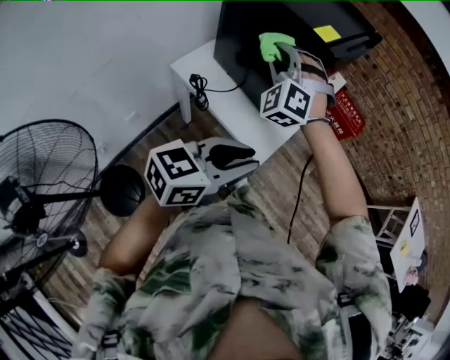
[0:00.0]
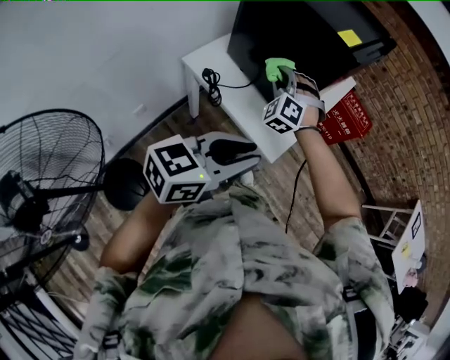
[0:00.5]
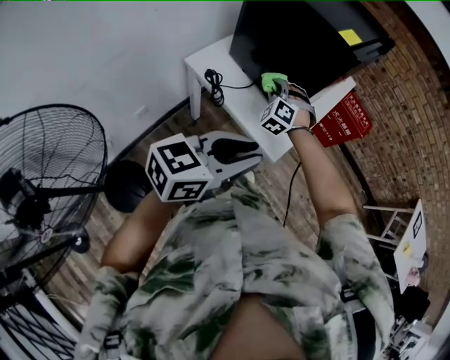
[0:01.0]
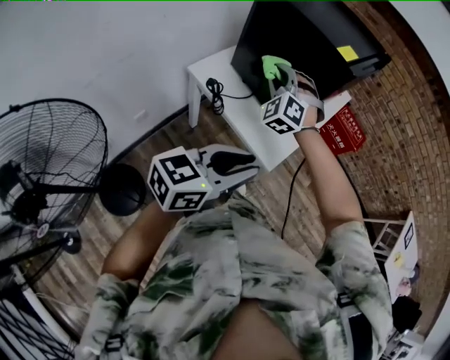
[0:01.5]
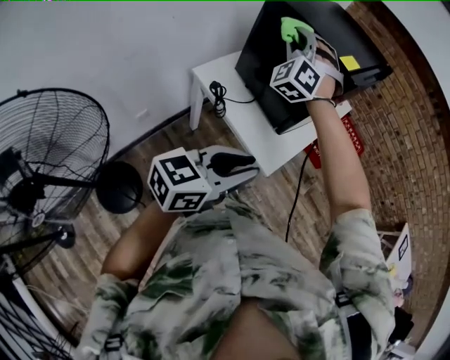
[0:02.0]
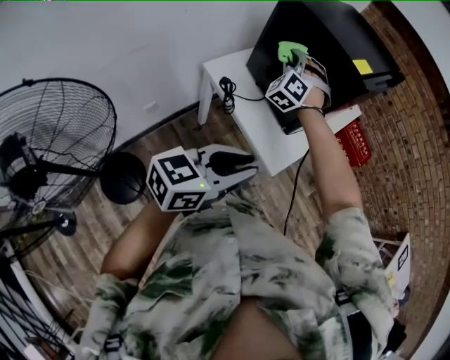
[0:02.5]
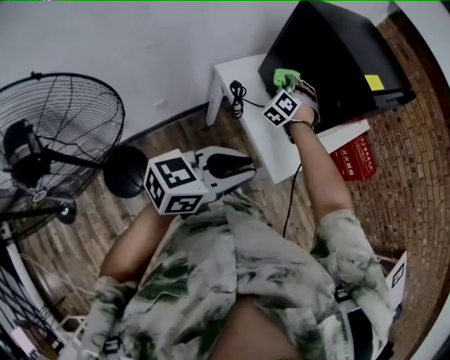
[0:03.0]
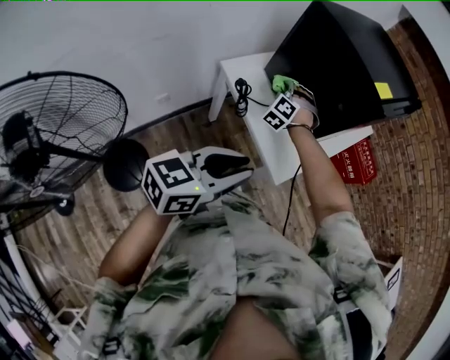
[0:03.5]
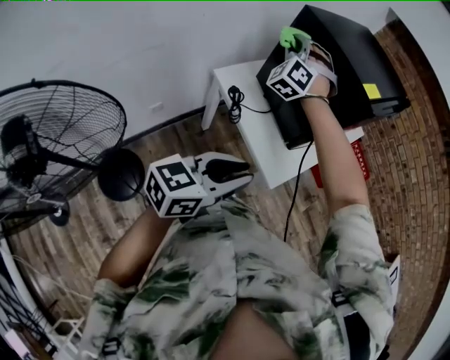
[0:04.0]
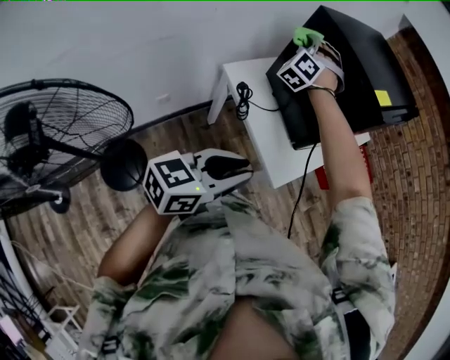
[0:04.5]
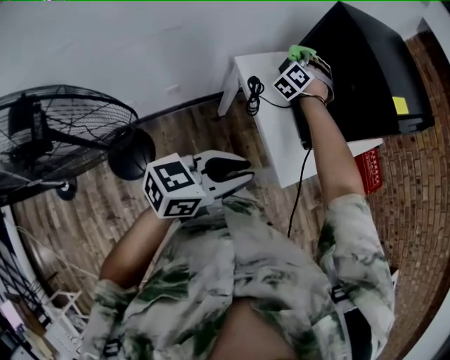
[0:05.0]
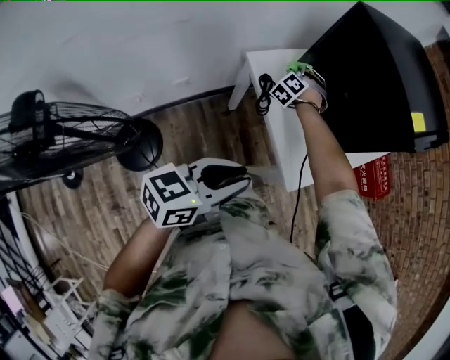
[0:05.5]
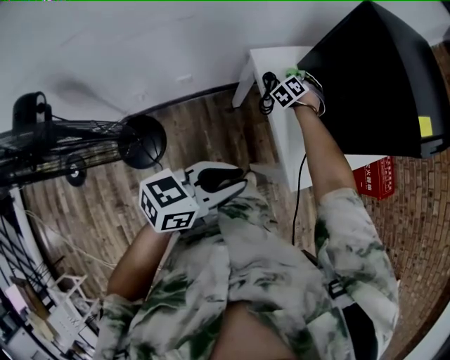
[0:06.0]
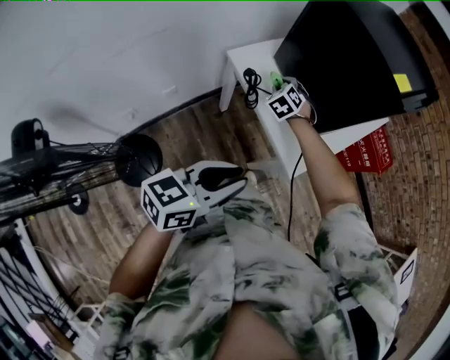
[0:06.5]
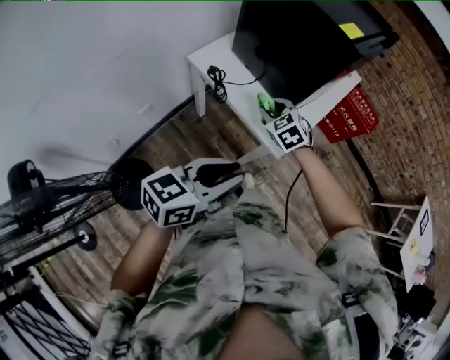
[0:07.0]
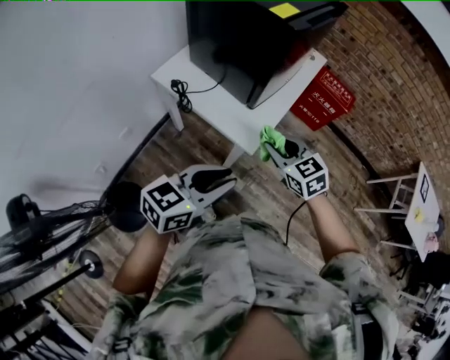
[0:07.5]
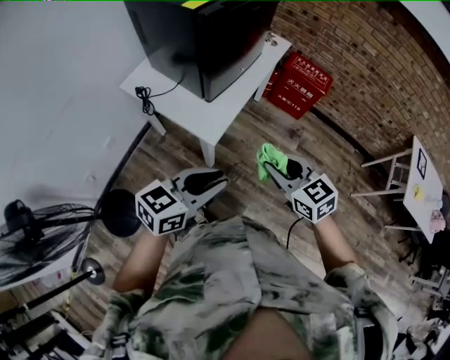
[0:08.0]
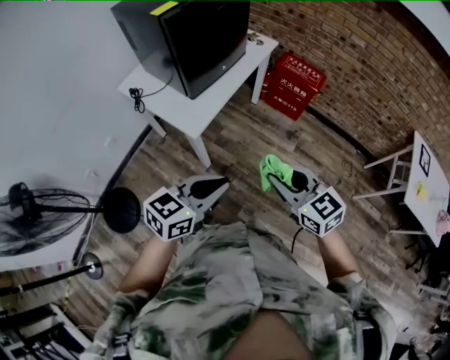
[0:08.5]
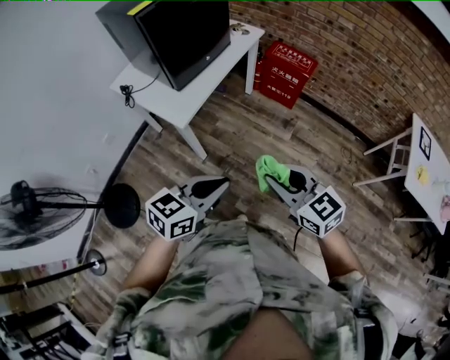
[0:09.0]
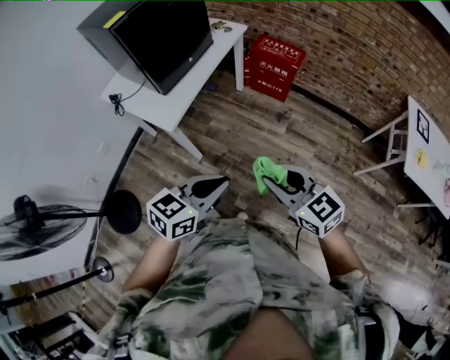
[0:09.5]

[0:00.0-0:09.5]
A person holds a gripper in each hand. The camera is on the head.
0:00.0 to 0:02.0: The left gripper shifts by about 5 cm, while the right gripper heads to the left, covering approximately 10 cm, and reaches some 20 cm downward, then returns.
0:02.0 to 0:04.0: The right gripper moves to the left, about 10 cm, and goes downward and returns, approximately 25 cm each way.
0:04.0 to 0:05.5: The left gripper changes place by approximately 5 cm; the right gripper travels downward by some 30 cm, and turns by about 30 degrees.
0:05.5 to 0:07.5: The right gripper goes some 40 cm to the right and backward, and rolls clockwise, seen from behind, by some 60 degrees. The left gripper is displaced to the right by approximately 15 cm, and changes its angle by some 30 degrees.
0:07.5 to 0:09.5: Both grippers are carried to the right, about 40 cm.

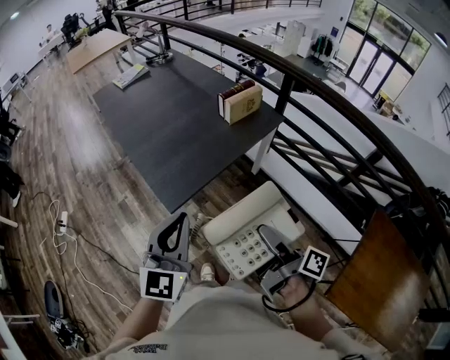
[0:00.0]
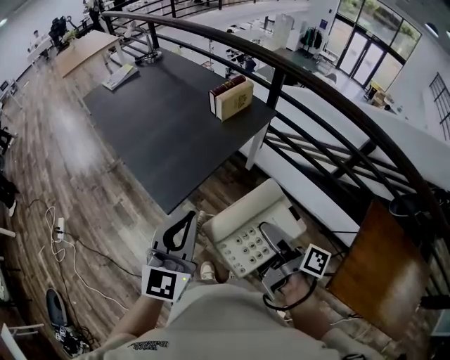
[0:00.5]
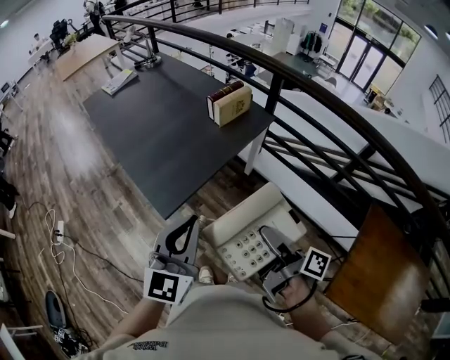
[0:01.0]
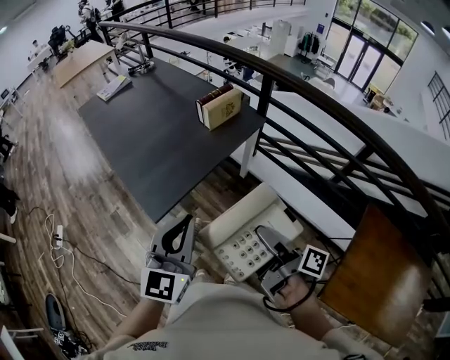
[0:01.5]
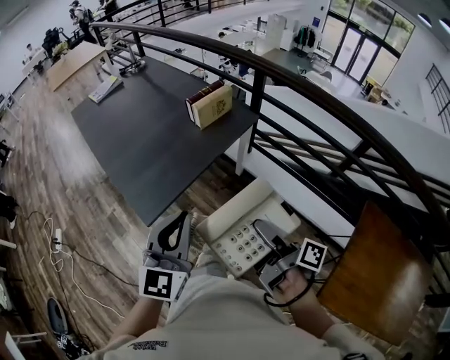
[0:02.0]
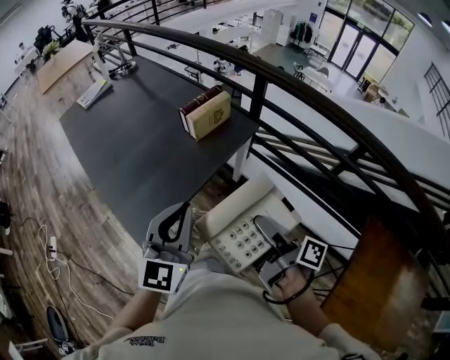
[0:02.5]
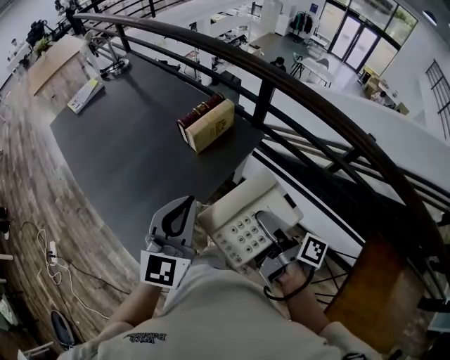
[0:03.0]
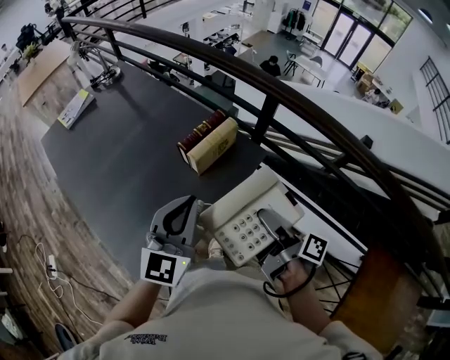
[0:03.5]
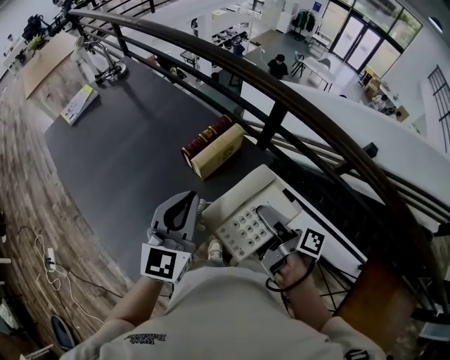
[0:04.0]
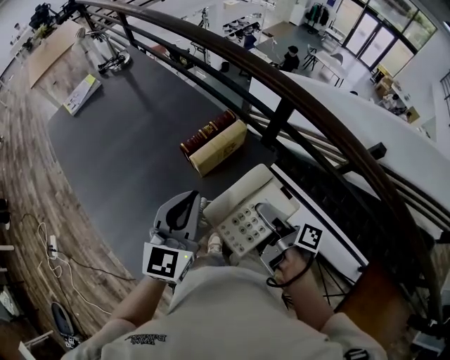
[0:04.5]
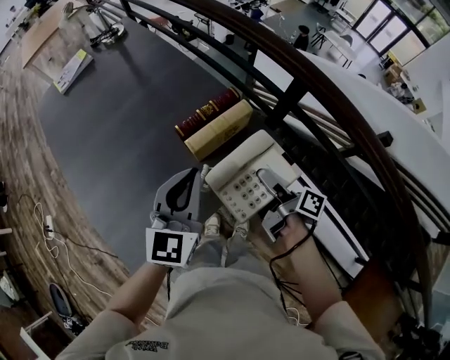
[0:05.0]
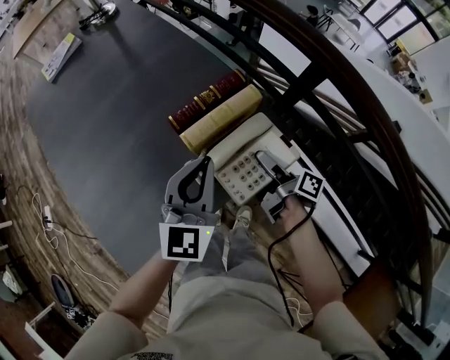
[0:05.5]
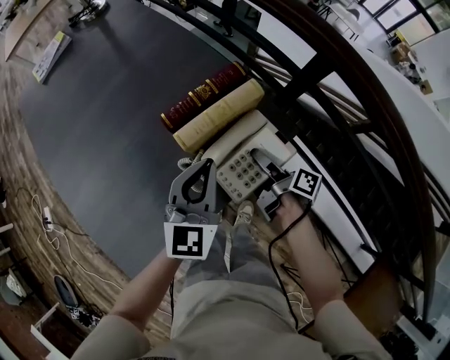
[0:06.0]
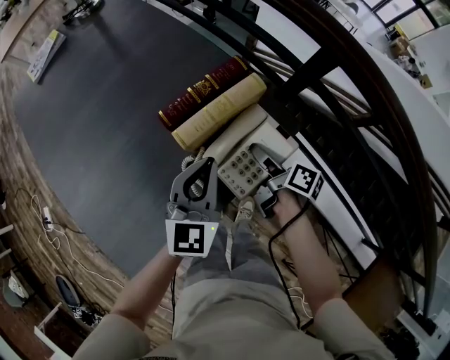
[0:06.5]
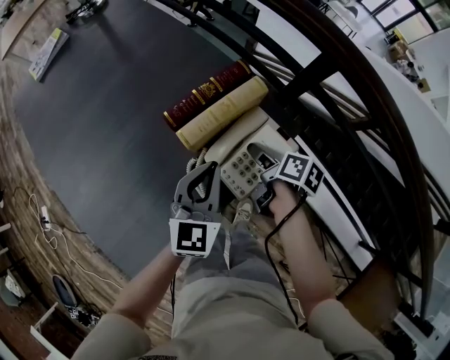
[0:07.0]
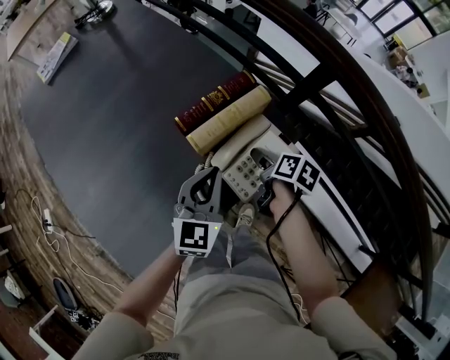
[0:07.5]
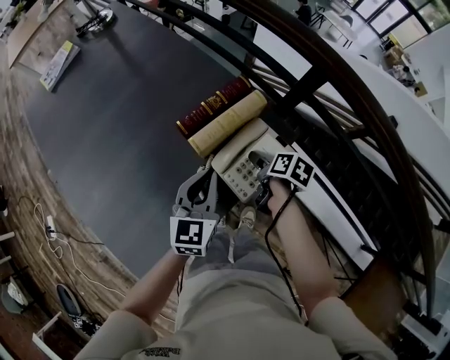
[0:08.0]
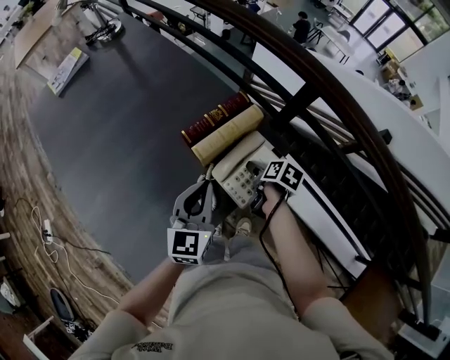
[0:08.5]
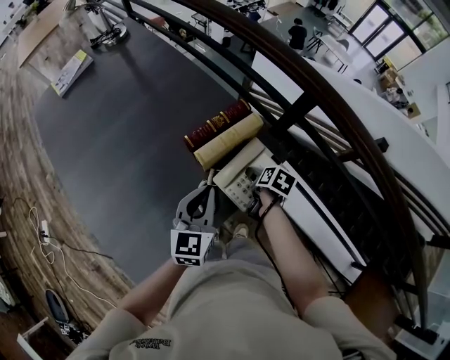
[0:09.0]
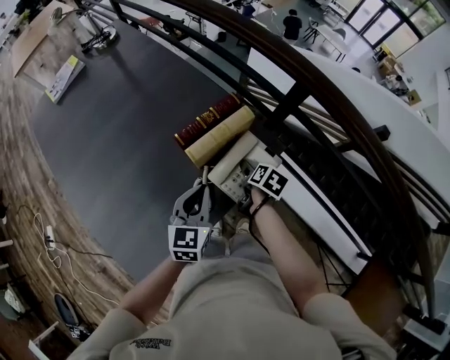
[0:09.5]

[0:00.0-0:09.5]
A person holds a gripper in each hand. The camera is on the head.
0:00.0 to 0:02.0: Both grippers move to the right, some 10 cm.
0:02.0 to 0:04.0: Both grippers travel together forward, approximately 40 cm.
0:04.0 to 0:05.5: The left gripper heads downward, forward and to the right, covering roughly 15 cm; the right gripper goes about 25 cm downward and forward.
0:05.5 to 0:07.5: The left gripper moves downward, some 10 cm. Meanwhile the right gripper shifts by roughly 5 cm, angles its fingers downward, by approximately 40 degrees, and opens up.
0:07.5 to 0:09.5: There are only small adjustments of the grippers.

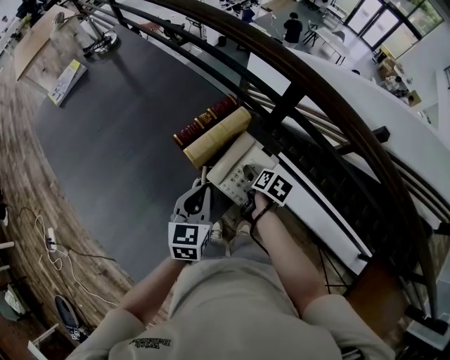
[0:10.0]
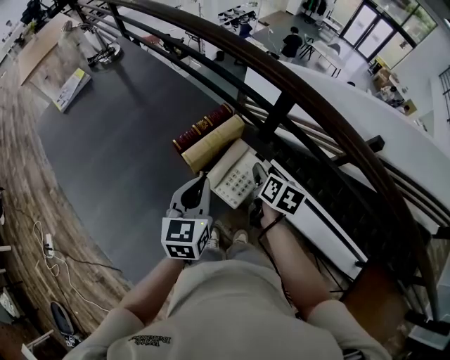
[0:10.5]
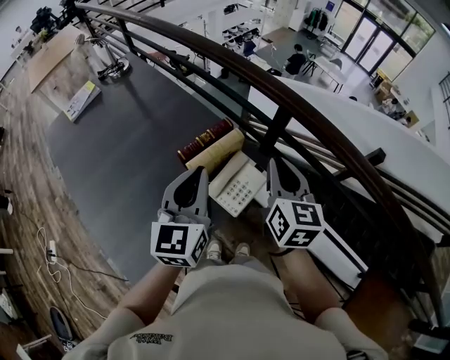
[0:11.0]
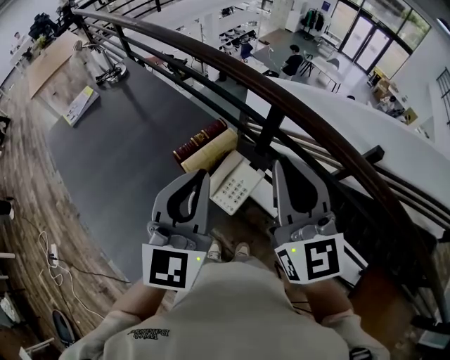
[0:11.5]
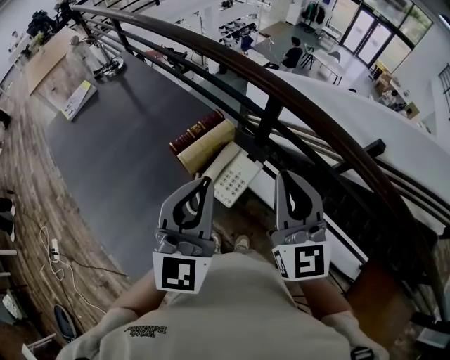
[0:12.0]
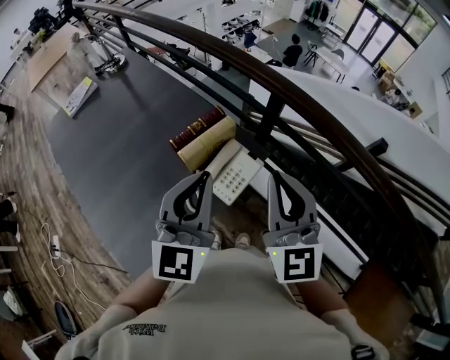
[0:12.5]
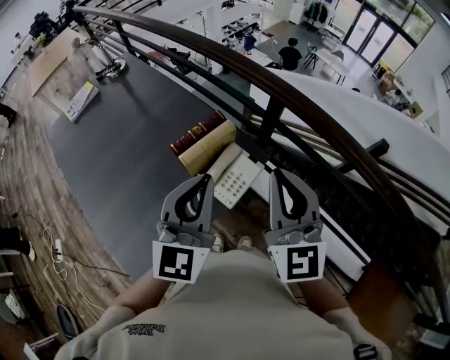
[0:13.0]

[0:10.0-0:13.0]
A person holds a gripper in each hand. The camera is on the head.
0:10.0 to 0:11.5: The left gripper is displaced upward by approximately 30 cm, and swivels approximately 30 degrees. The right gripper shifts about 50 cm upward, tilts its fingers some 60 degrees upward, and closes up.
0:11.5 to 0:13.0: The left gripper moves some 5 cm. Meanwhile the right gripper shifts about 5 cm downward.

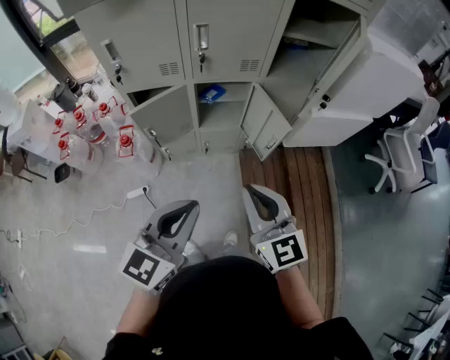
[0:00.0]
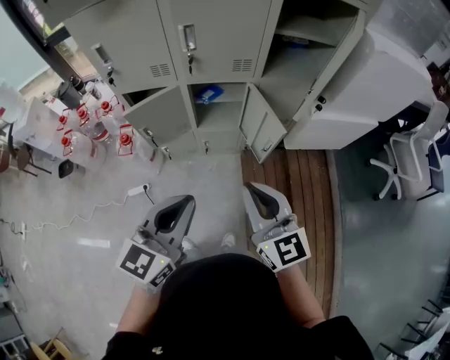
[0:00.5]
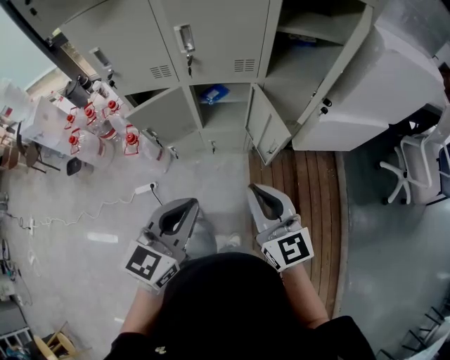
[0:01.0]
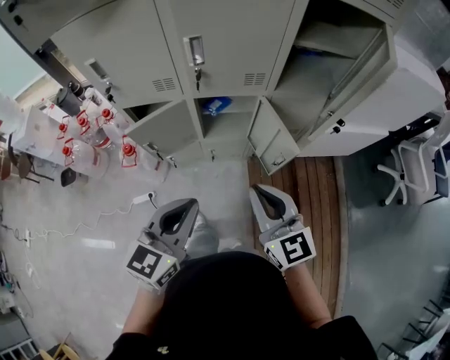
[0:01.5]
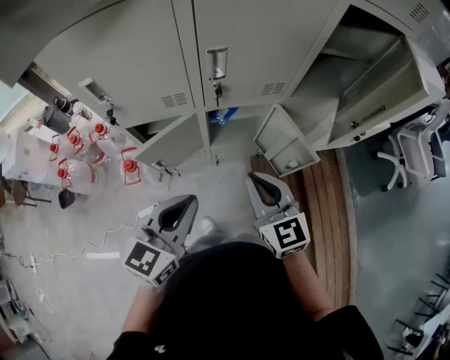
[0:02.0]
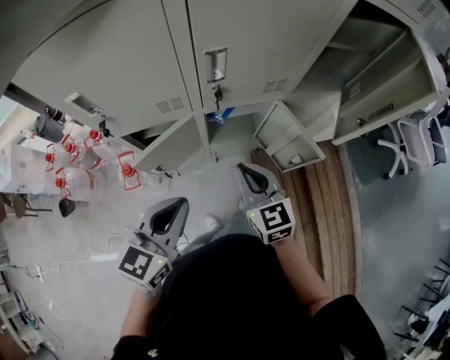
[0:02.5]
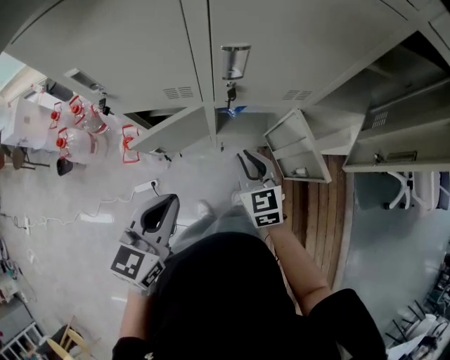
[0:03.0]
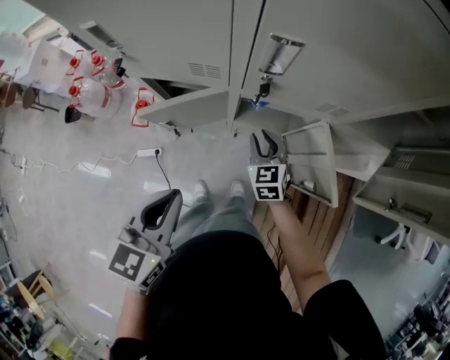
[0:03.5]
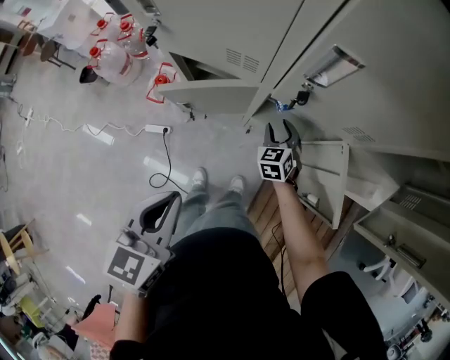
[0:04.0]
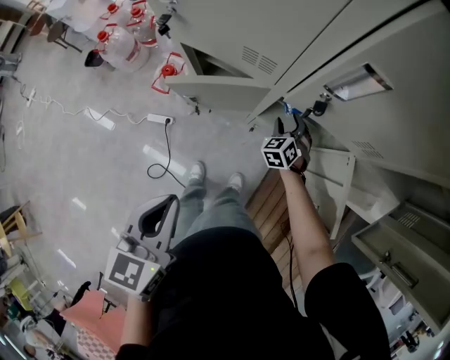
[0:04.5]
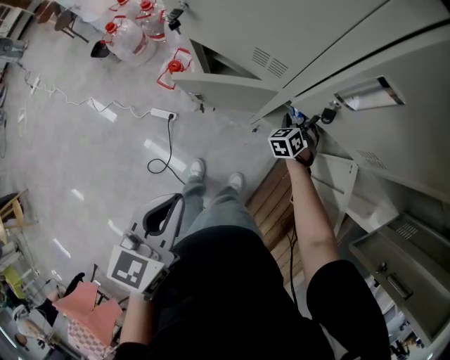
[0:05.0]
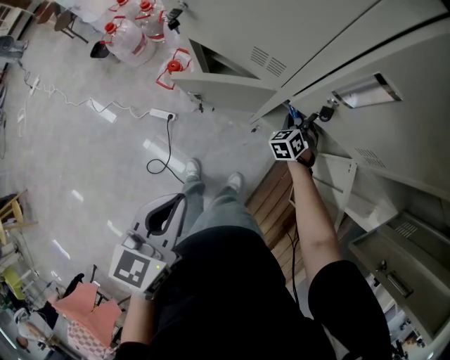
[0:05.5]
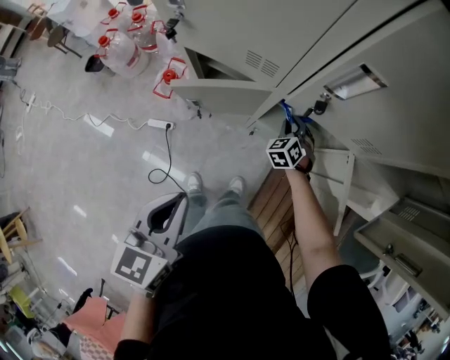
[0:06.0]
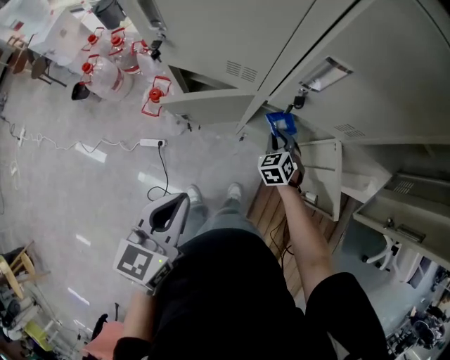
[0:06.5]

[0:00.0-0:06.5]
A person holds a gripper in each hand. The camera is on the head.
0:00.0 to 0:02.0: The right gripper travels forward by roughly 20 cm; the left gripper is displaced forward and to the left by roughly 20 cm.
0:02.0 to 0:04.5: The left gripper goes approximately 5 cm downward, and turns by approximately 50 degrees, while the right gripper goes roughly 40 cm downward and forward, swivels about 50 degrees, and opens up.
0:04.5 to 0:06.5: The right gripper travels backward by approximately 5 cm, and closes its fingers.
